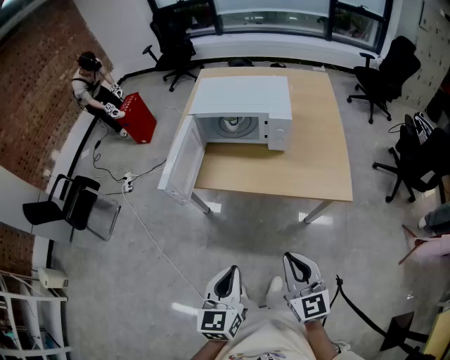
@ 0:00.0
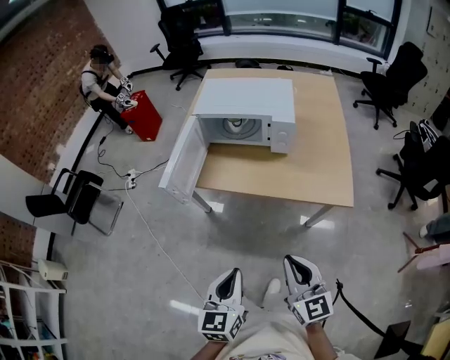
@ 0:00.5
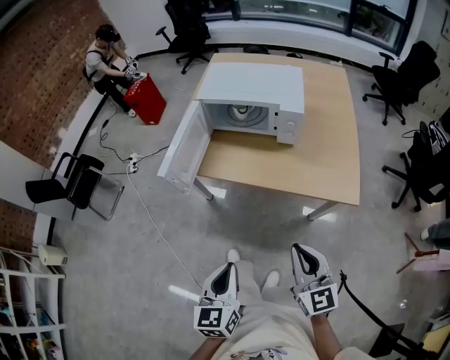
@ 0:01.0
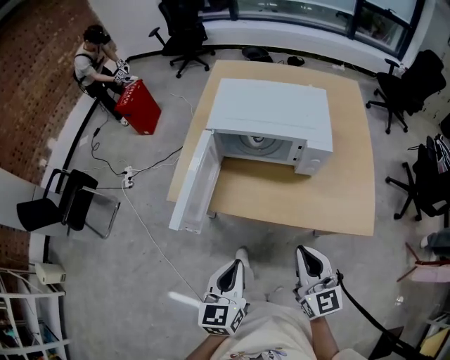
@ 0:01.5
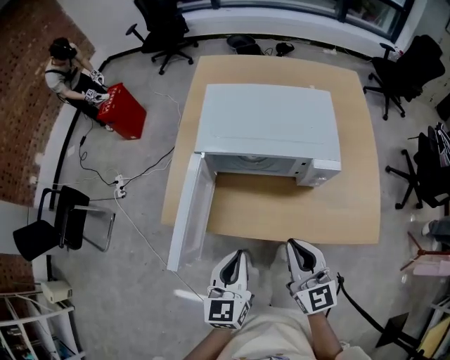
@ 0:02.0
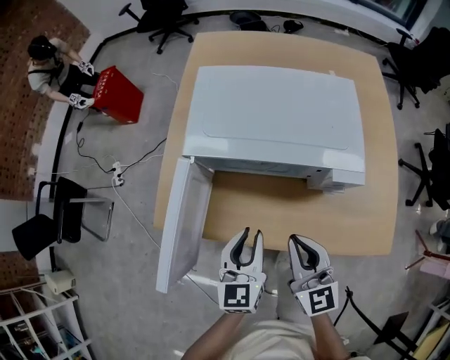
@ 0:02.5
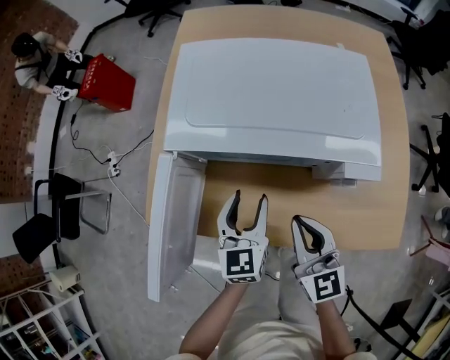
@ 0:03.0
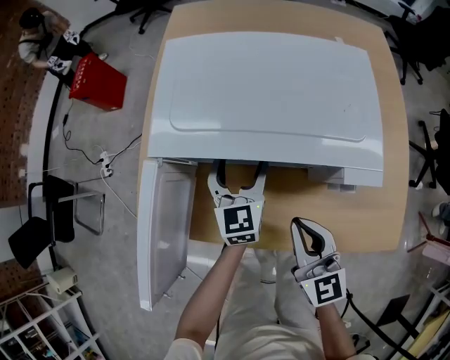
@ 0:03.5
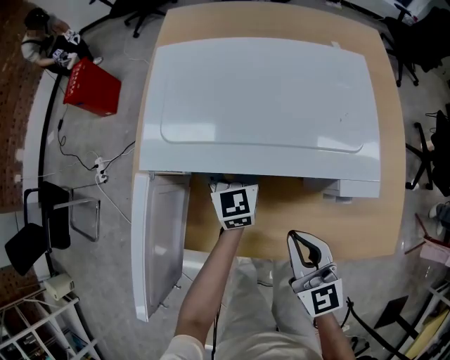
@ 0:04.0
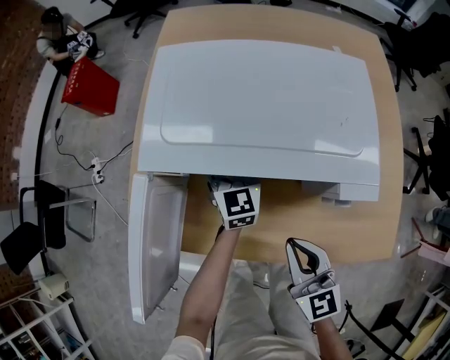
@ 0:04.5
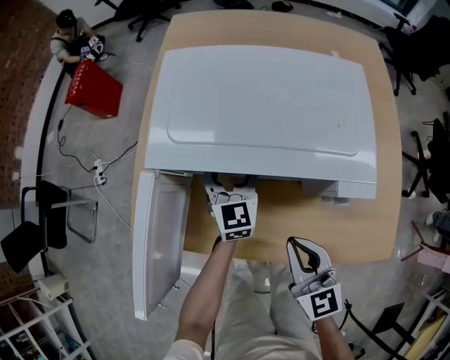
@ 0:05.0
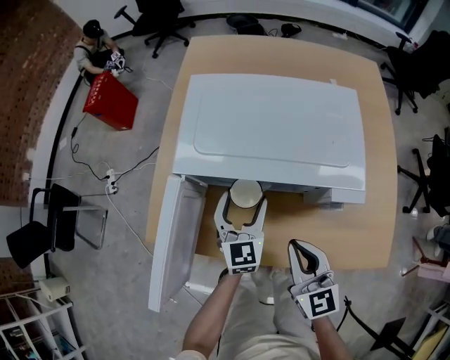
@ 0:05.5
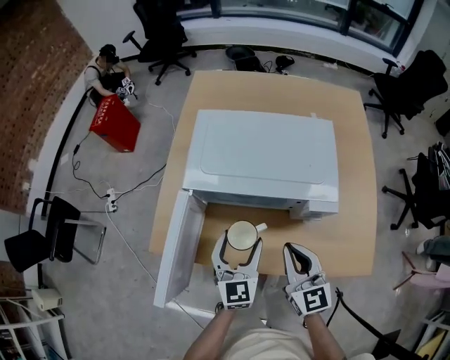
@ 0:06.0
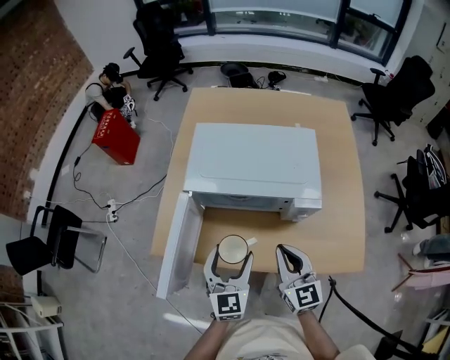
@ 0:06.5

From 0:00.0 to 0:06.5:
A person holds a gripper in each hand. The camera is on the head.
From 0:00.0 to 0:02.0: Both grippers travel together forward, some 35 cm.
From 0:02.0 to 0:04.5: The left gripper moves forward and downward, about 40 cm, rotates about 20 degrees, and opens. The right gripper is displaced downward and forward by approximately 15 cm.
From 0:04.5 to 0:06.5: The right gripper heads upward, covering roughly 10 cm. The left gripper heads backward and upward, covering some 30 cm.

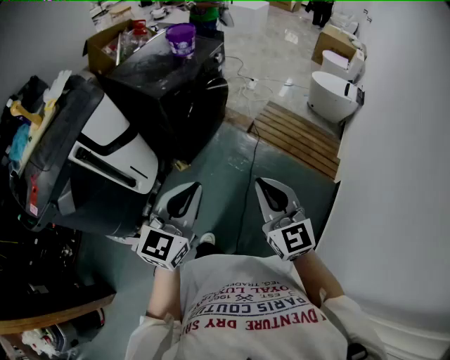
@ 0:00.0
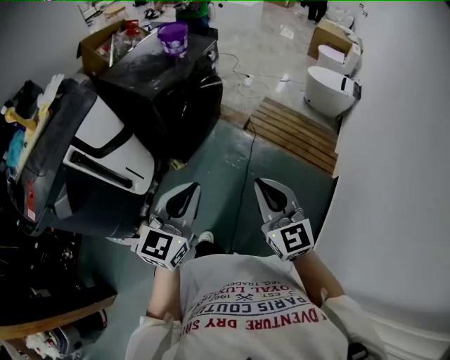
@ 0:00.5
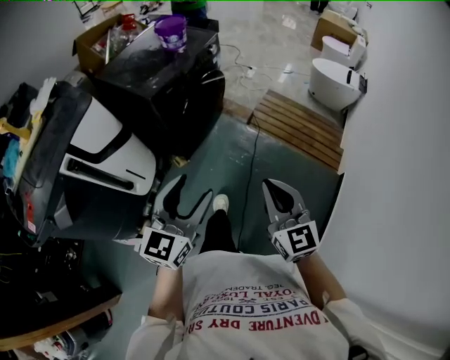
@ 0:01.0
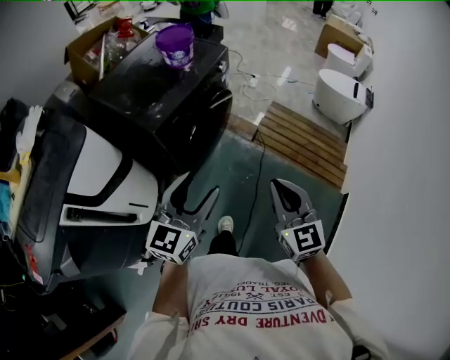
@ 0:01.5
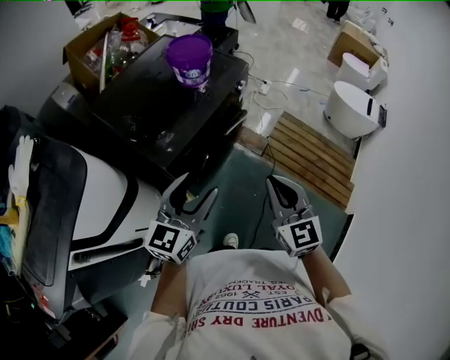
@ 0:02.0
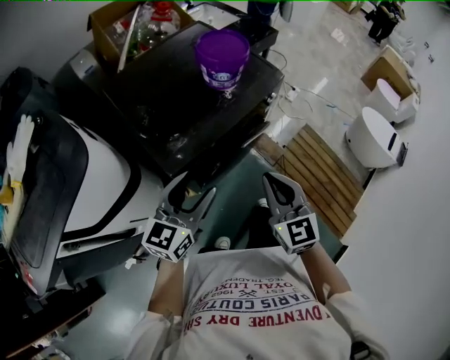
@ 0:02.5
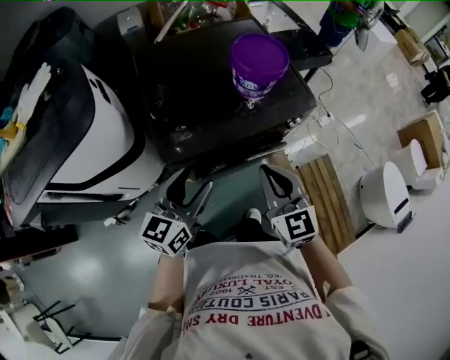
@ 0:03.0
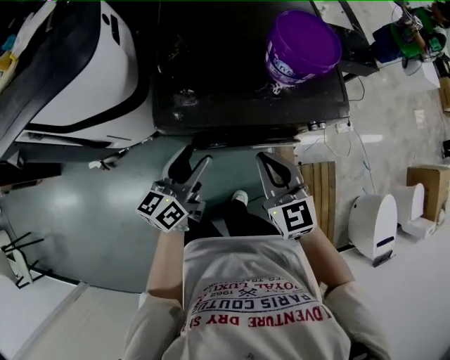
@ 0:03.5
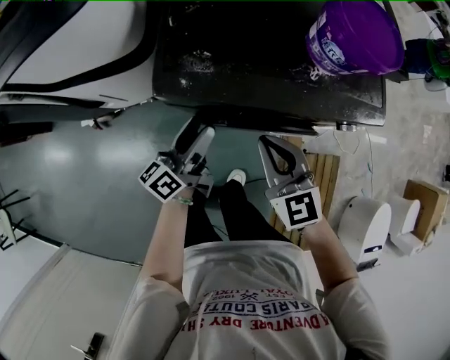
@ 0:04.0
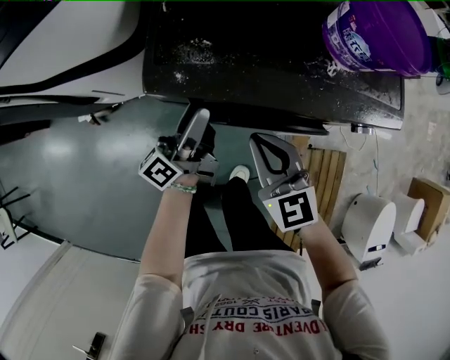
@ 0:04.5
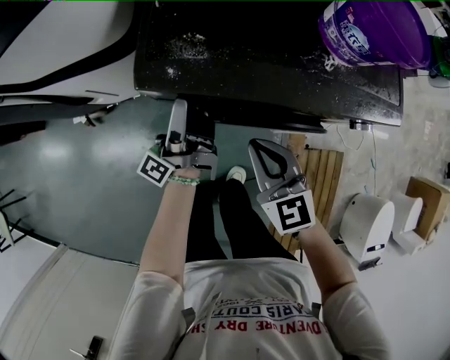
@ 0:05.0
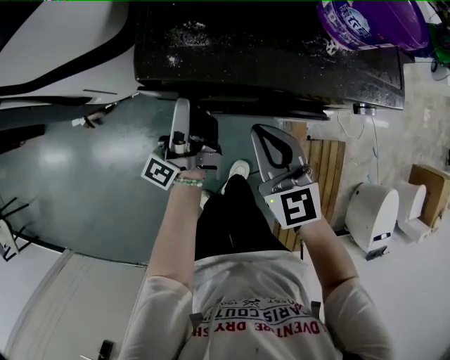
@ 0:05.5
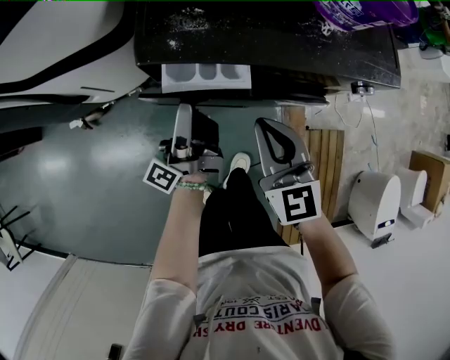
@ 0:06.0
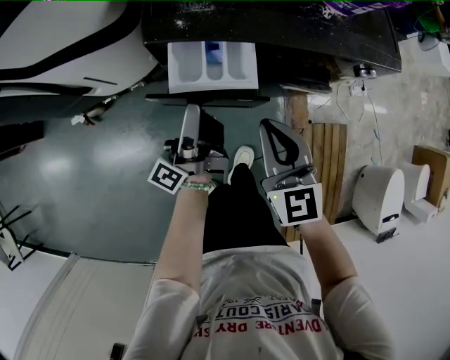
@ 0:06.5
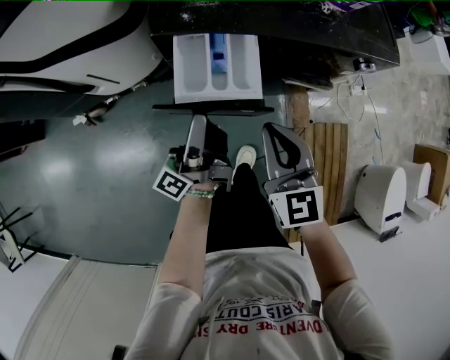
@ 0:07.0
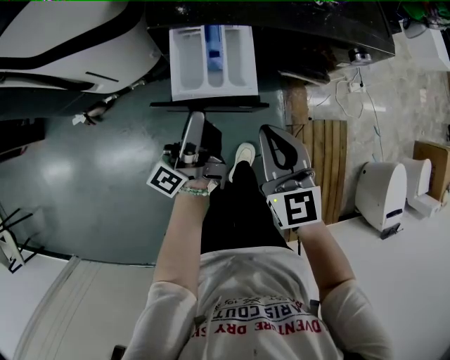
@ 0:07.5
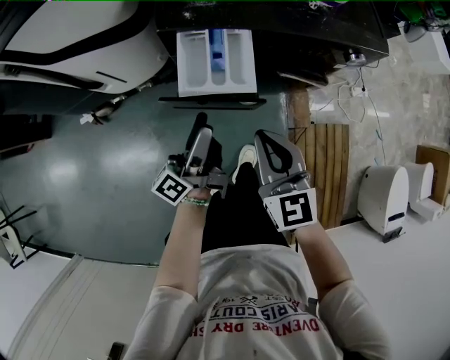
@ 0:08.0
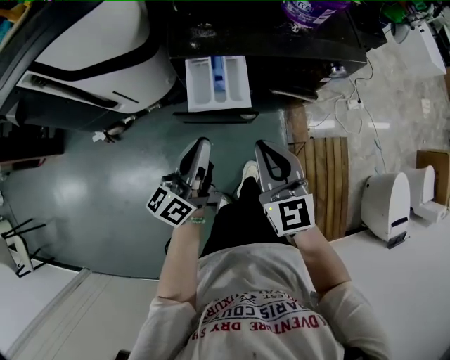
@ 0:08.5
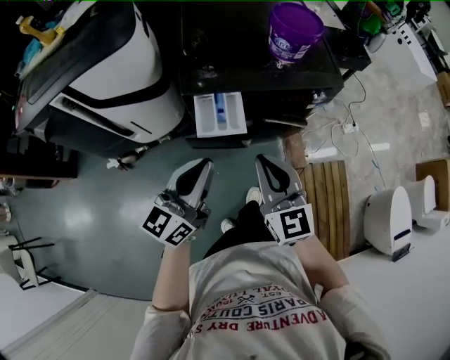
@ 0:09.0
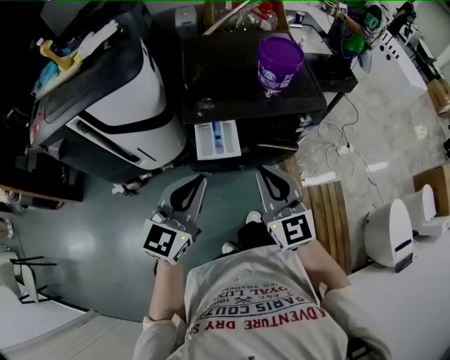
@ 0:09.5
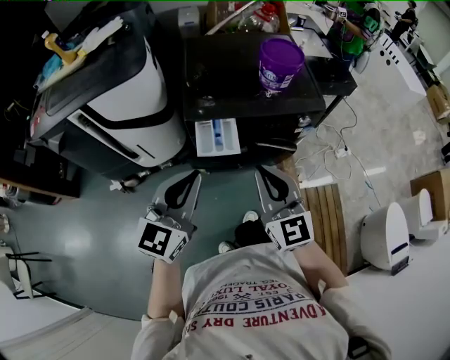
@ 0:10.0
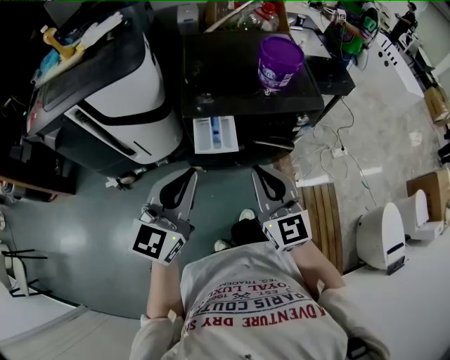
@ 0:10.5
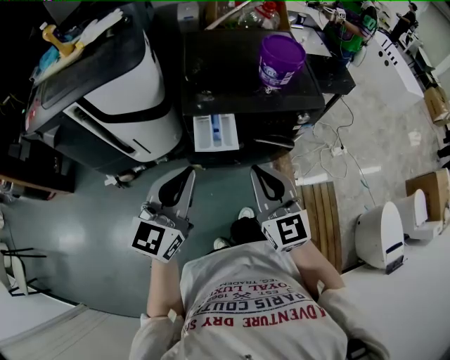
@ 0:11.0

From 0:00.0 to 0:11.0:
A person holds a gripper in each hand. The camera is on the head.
From 0:00.0 to 0:02.0: The two grippers travel together, forward, some 40 cm. The left gripper opens up.
From 0:02.0 to 0:03.5: The right gripper ends up roughly 25 cm from where it was, and changes its angle by about 60 degrees. The left gripper is displaced downward by approximately 15 cm, and changes its angle by roughly 60 degrees.
From 0:03.5 to 0:05.5: The right gripper is displaced downward and to the left by some 10 cm, while the left gripper heads downward and forward, covering about 10 cm, and changes its angle by about 60 degrees.
From 0:05.5 to 0:07.5: The grippers both shift backward by approximately 10 cm.
From 0:07.5 to 0:09.0: The grippers both shift upward by approximately 20 cm. The left gripper rotates around the line of its fingers by about 50 degrees, clockwise from behind, and closes its fingers.
From 0:09.0 to 0:11.0: The grippers both shift upward by roughly 5 cm. The left gripper swivels some 20 degrees.

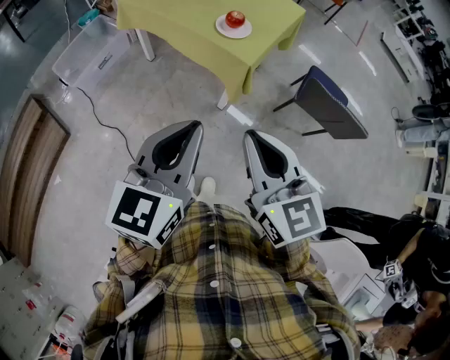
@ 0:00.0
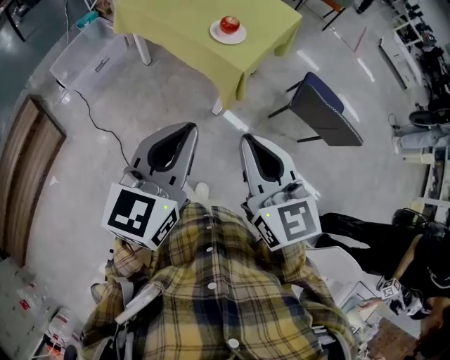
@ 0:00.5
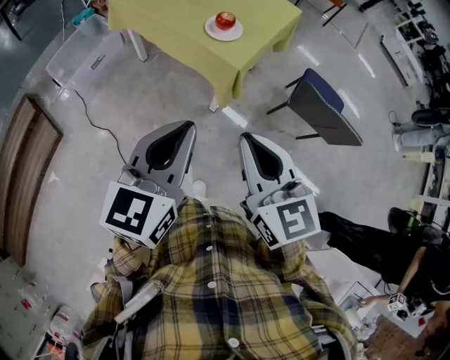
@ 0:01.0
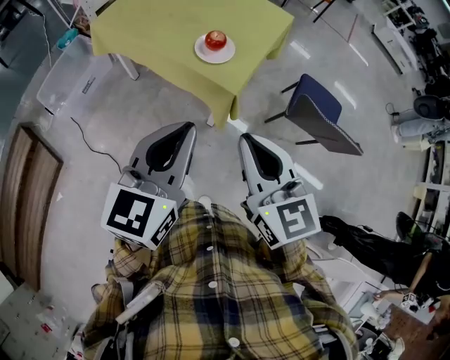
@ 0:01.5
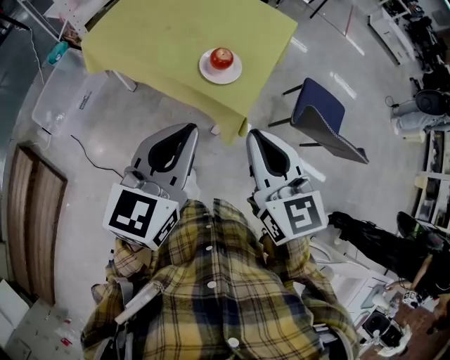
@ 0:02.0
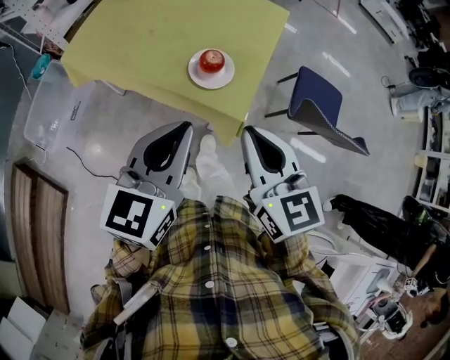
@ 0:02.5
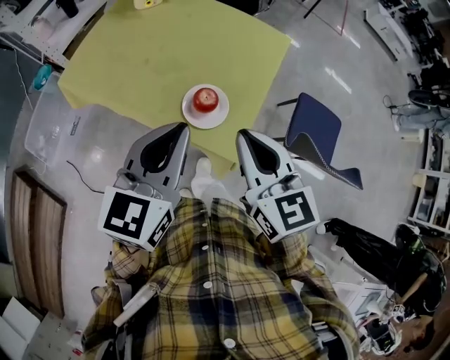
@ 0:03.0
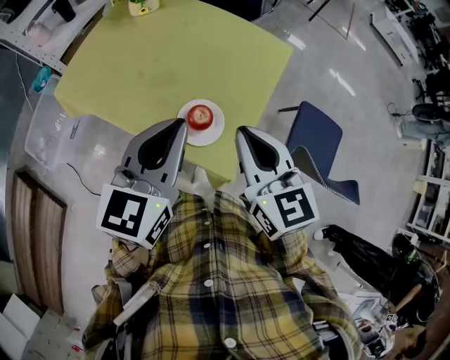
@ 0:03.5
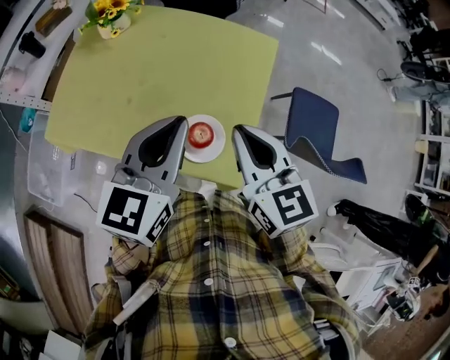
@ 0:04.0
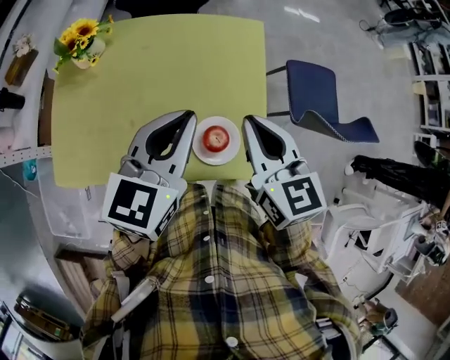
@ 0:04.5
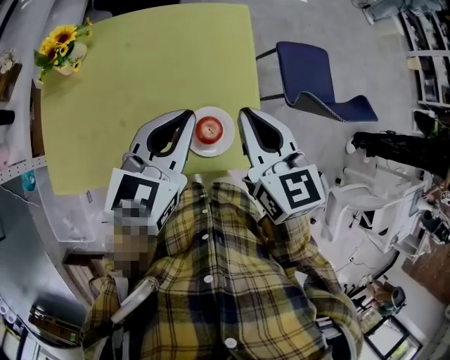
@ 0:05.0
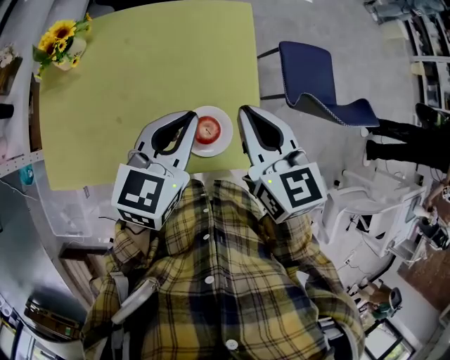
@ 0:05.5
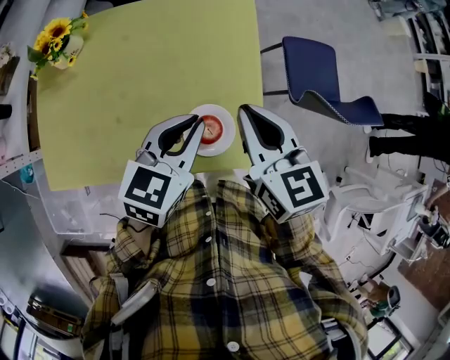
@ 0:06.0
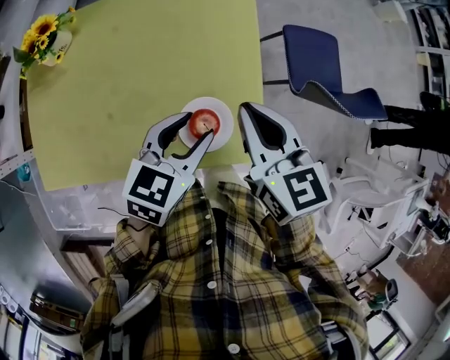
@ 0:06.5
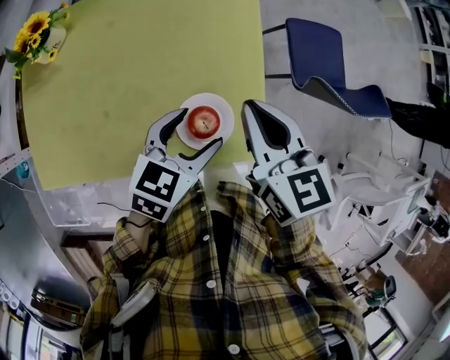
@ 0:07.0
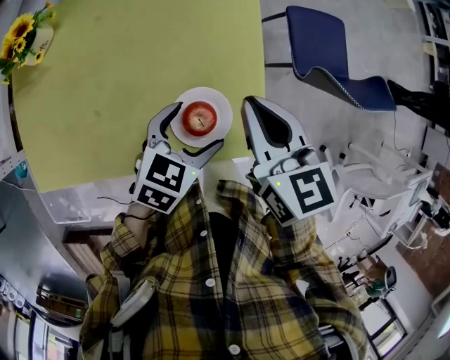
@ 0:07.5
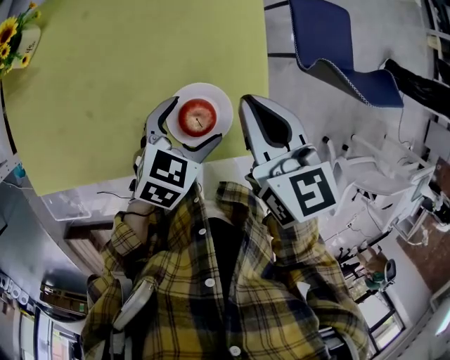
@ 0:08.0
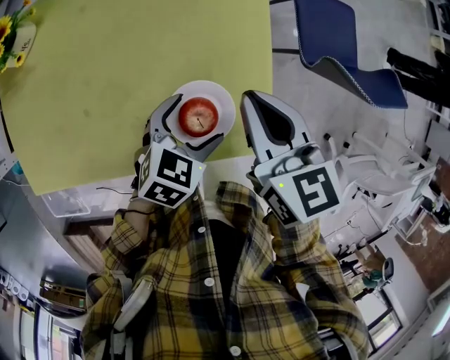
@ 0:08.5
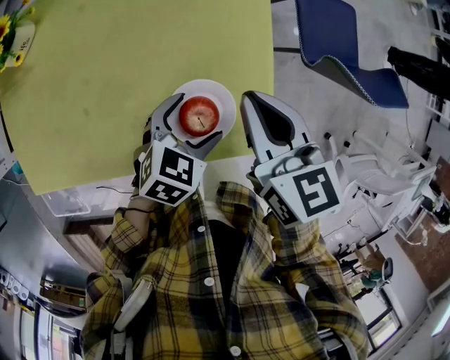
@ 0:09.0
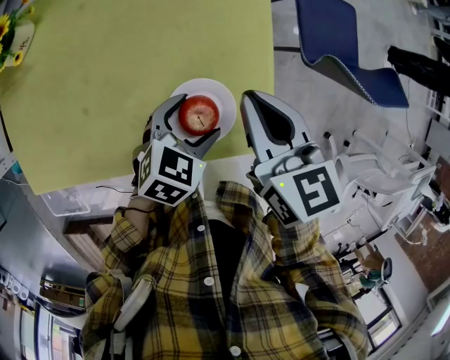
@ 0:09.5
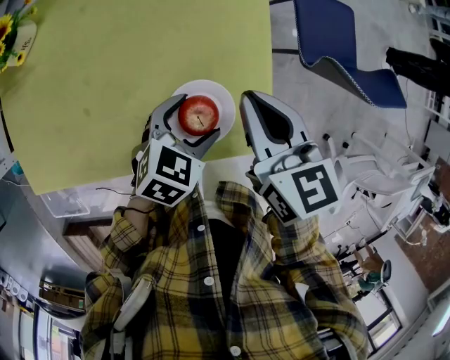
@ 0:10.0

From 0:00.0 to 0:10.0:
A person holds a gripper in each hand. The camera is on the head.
From 0:00.0 to 0:02.0: Both grippers travel together forward, approximately 25 cm.
From 0:02.0 to 0:04.0: Both grippers travel together forward, approximately 35 cm.
From 0:04.0 to 0:06.0: The right gripper changes place by approximately 5 cm, and changes its angle by roughly 20 degrees; the left gripper is displaced downward by some 10 cm, and changes its angle by approximately 30 degrees.
From 0:06.0 to 0:08.0: The right gripper travels downward by roughly 10 cm; the left gripper heads downward, covering approximately 15 cm, changes its angle by roughly 20 degrees, and opens its fingers.
From 0:08.0 to 0:10.0: The grippers move only a little.
